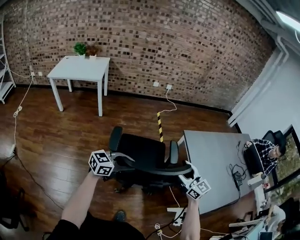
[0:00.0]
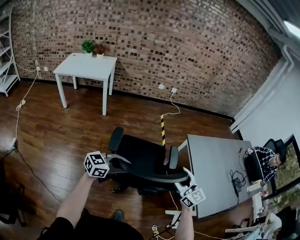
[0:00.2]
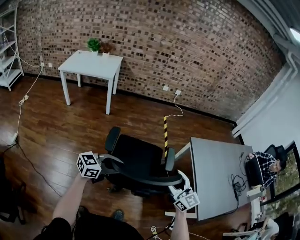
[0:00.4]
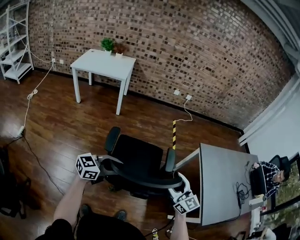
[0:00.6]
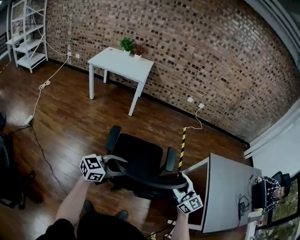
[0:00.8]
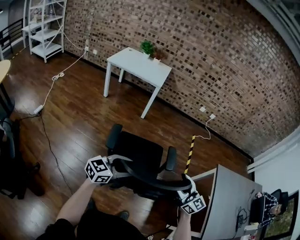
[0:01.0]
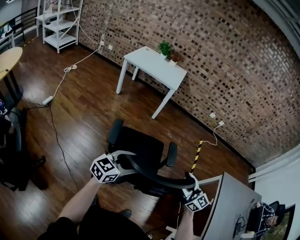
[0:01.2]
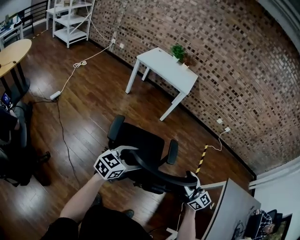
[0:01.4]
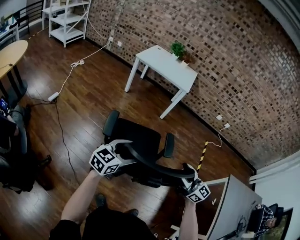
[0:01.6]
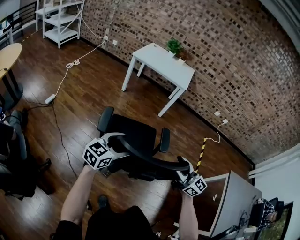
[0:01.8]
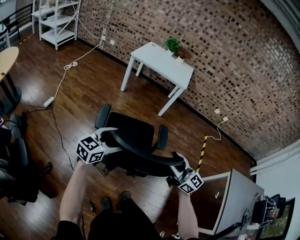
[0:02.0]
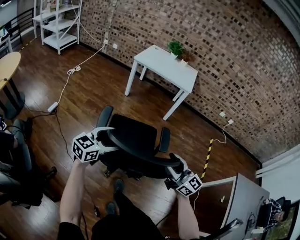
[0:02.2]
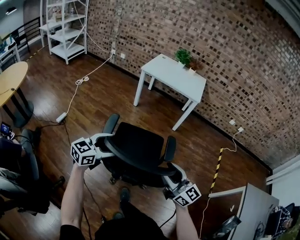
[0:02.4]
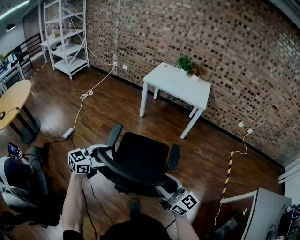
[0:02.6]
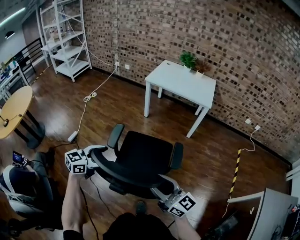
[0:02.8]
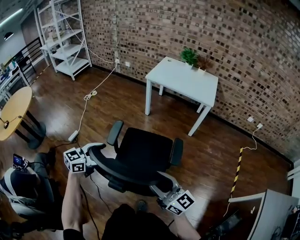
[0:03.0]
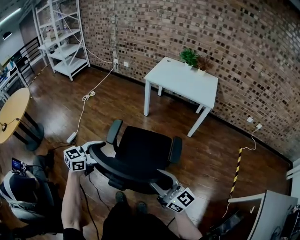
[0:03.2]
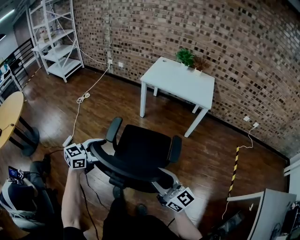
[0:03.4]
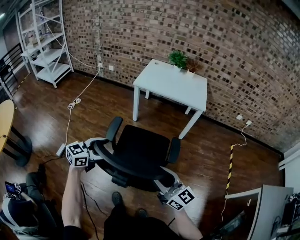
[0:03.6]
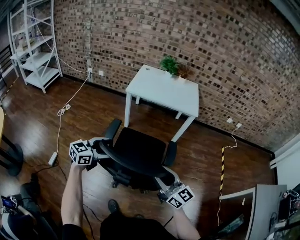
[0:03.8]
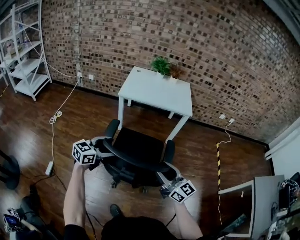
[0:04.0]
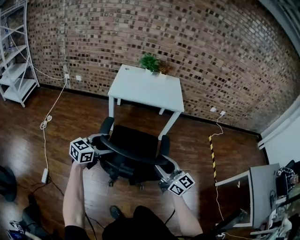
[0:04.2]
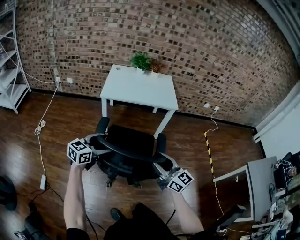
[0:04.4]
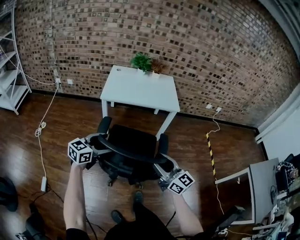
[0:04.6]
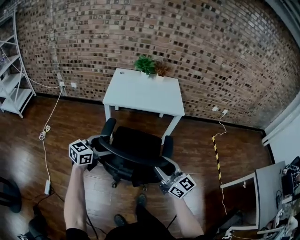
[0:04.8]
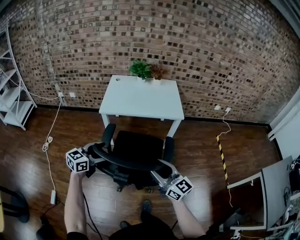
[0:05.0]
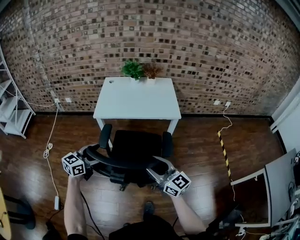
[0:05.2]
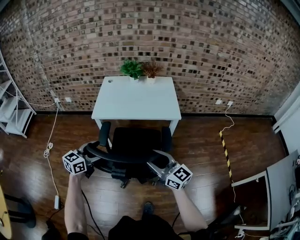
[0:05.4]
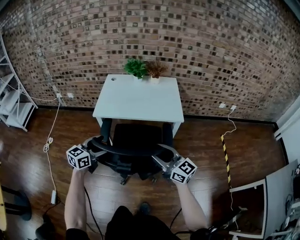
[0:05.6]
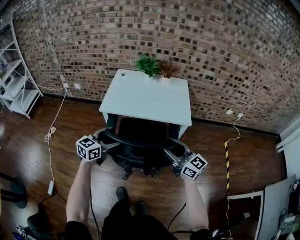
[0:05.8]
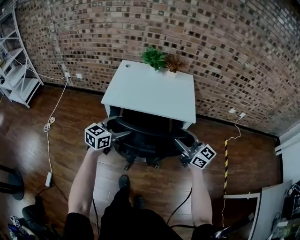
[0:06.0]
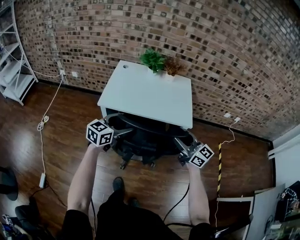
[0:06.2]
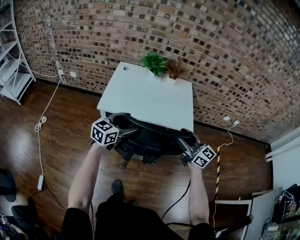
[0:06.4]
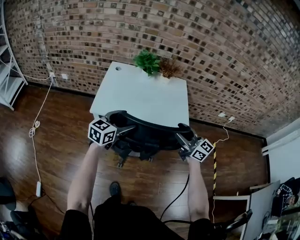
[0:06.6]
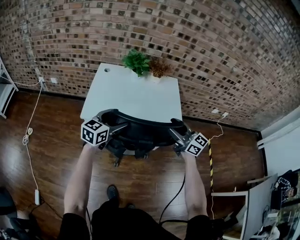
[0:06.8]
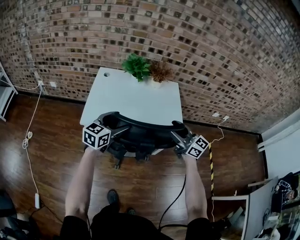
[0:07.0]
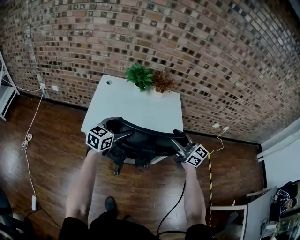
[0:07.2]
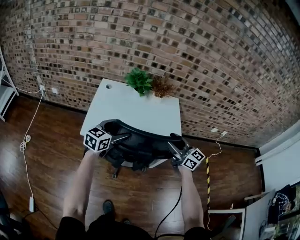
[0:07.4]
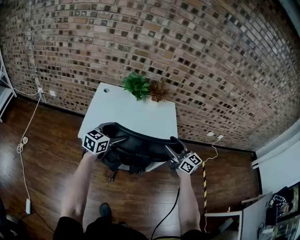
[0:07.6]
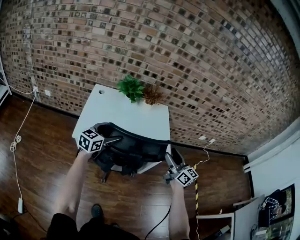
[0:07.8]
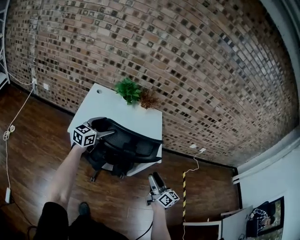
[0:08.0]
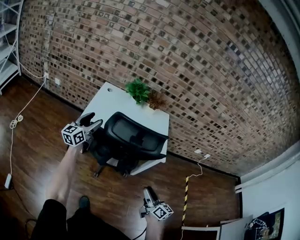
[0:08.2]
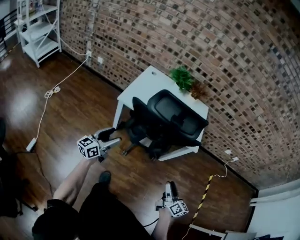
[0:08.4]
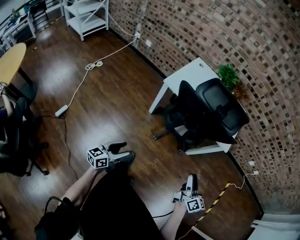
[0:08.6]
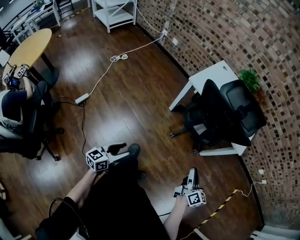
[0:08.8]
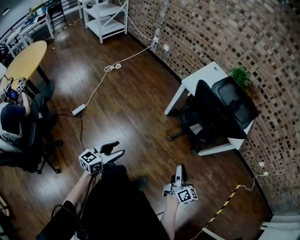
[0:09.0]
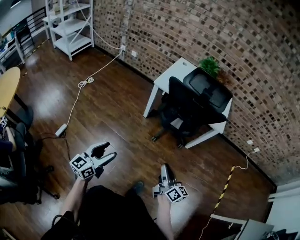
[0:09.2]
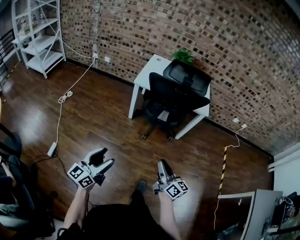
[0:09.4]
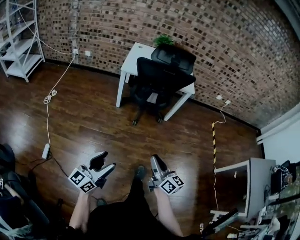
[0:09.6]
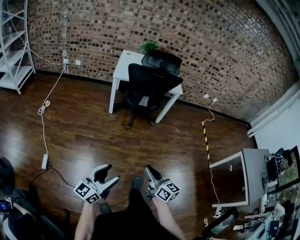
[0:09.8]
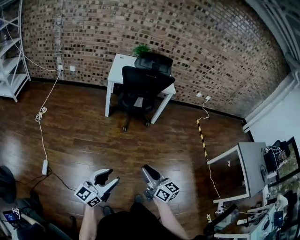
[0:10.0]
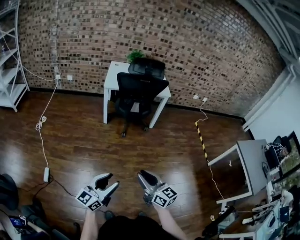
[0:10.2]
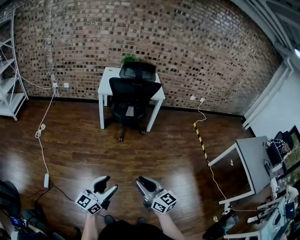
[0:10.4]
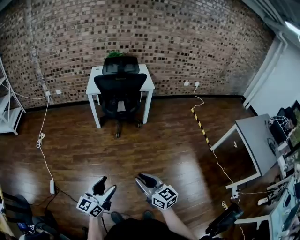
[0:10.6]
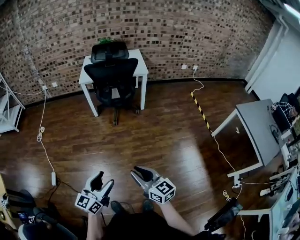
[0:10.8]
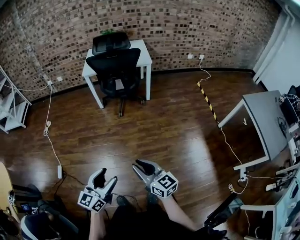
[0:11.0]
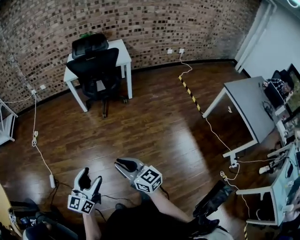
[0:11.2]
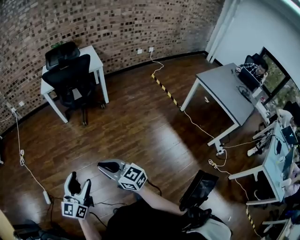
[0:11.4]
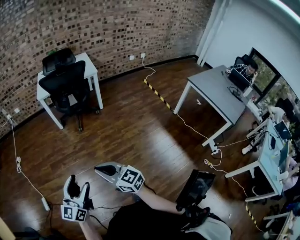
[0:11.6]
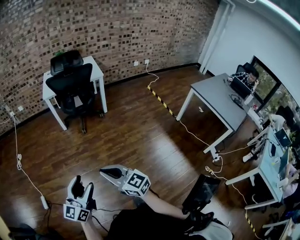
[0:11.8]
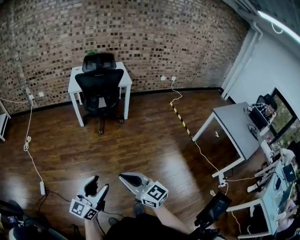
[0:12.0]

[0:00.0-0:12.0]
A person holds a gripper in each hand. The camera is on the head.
0:00.0 to 0:01.6: The two grippers travel together, about 60 cm. The left gripper turns by approximately 50 degrees. The right gripper changes its angle by approximately 40 degrees.
0:01.6 to 0:03.0: Both grippers travel together forward and to the left, some 30 cm.
0:03.0 to 0:04.4: Both grippers travel together forward, approximately 30 cm. The right gripper changes its angle by about 20 degrees.
0:04.4 to 0:06.0: The right gripper heads forward, covering about 35 cm. The left gripper is displaced forward and to the right by about 30 cm.
0:06.0 to 0:07.6: Both grippers move forward, roughly 25 cm.
0:07.6 to 0:09.0: The two grippers travel together, backward and to the left, about 60 cm. The right gripper turns by some 40 degrees, and closes. The left gripper swivels roughly 30 degrees.
0:09.0 to 0:10.4: Both grippers move backward and upward, some 50 cm. The right gripper swivels some 30 degrees. Meanwhile the left gripper turns by some 40 degrees.
0:10.4 to 0:12.0: The left gripper goes some 15 cm backward, to the right and upward. Meanwhile the right gripper moves backward, about 10 cm, and reaches some 15 cm to the right, then returns.

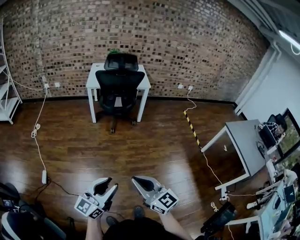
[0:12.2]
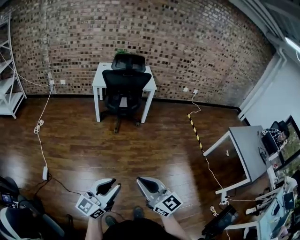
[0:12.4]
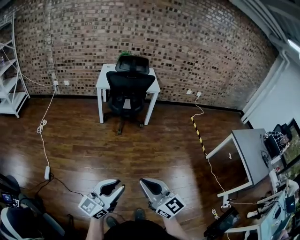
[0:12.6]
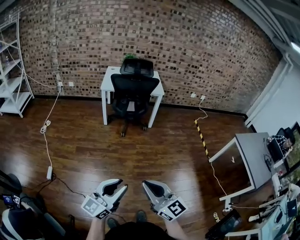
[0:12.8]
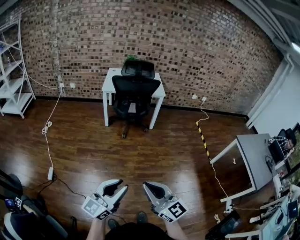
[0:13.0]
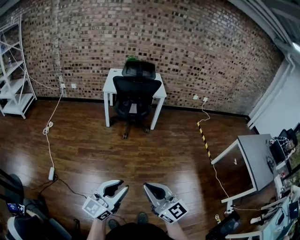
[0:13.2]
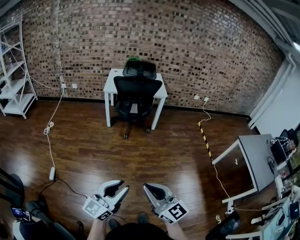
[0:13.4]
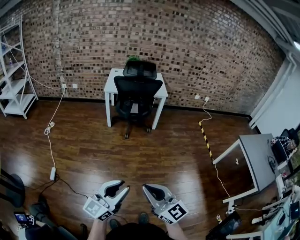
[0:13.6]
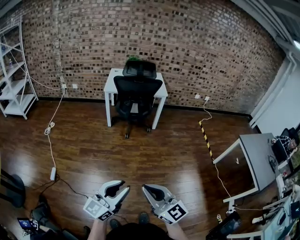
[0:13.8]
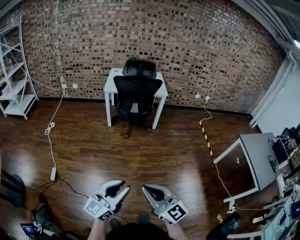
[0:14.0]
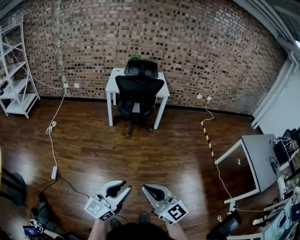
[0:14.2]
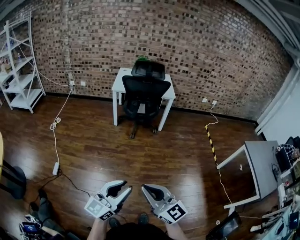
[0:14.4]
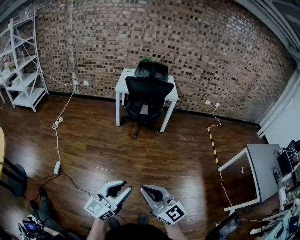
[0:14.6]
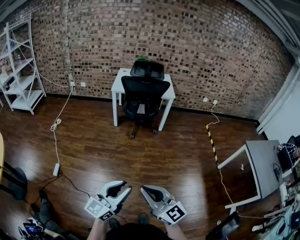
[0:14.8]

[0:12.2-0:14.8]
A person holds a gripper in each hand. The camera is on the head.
0:12.2 to 0:13.4: The left gripper shifts by about 5 cm; the right gripper heads upward, covering roughly 5 cm.
0:13.4 to 0:14.8: The grippers move only a little.

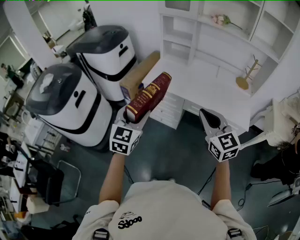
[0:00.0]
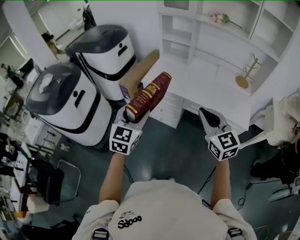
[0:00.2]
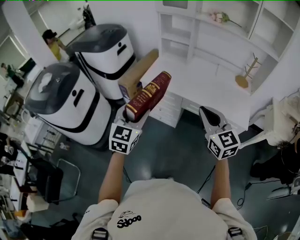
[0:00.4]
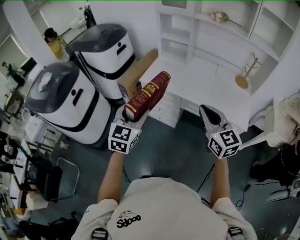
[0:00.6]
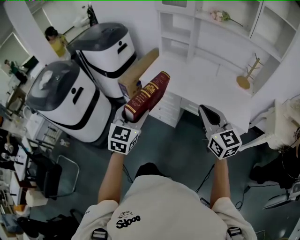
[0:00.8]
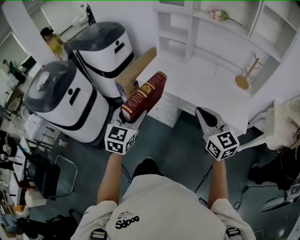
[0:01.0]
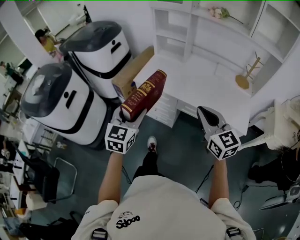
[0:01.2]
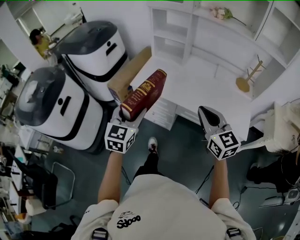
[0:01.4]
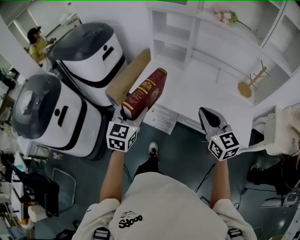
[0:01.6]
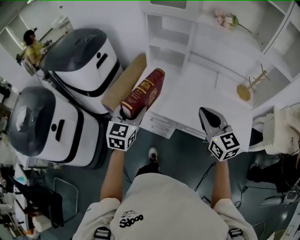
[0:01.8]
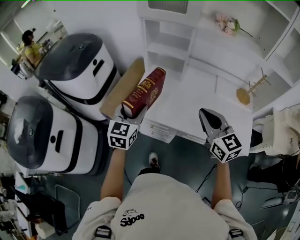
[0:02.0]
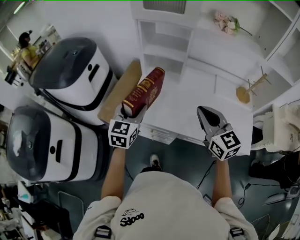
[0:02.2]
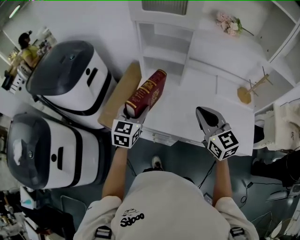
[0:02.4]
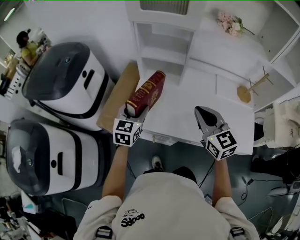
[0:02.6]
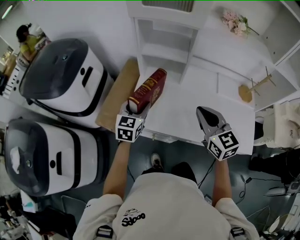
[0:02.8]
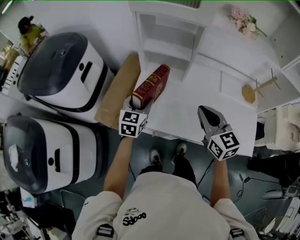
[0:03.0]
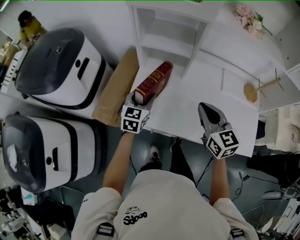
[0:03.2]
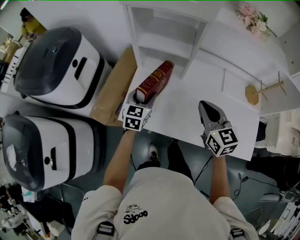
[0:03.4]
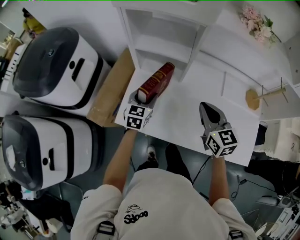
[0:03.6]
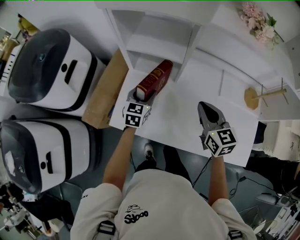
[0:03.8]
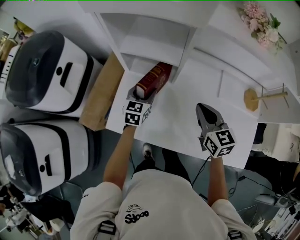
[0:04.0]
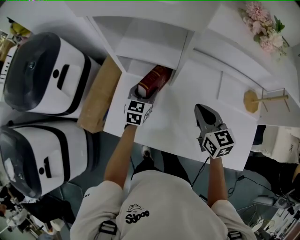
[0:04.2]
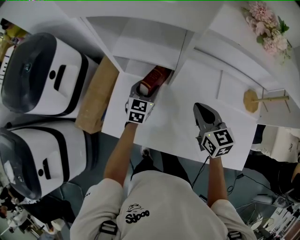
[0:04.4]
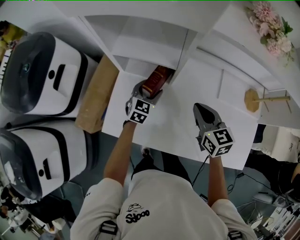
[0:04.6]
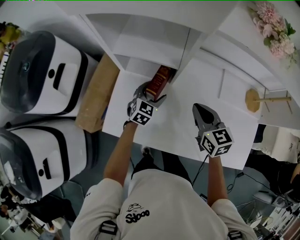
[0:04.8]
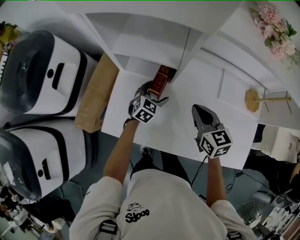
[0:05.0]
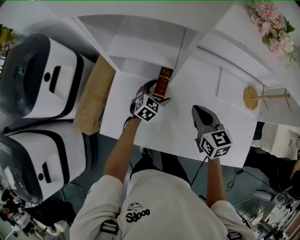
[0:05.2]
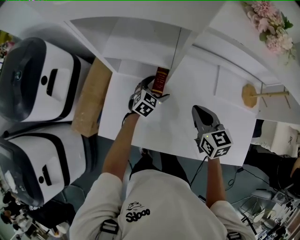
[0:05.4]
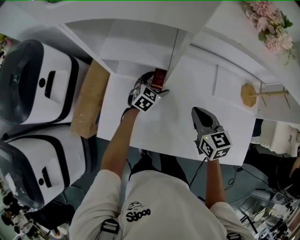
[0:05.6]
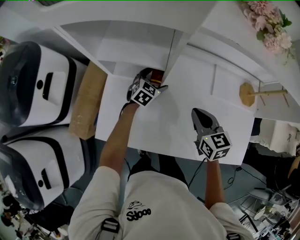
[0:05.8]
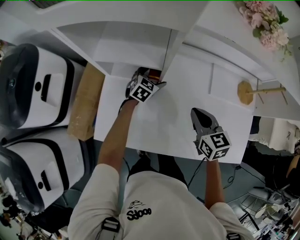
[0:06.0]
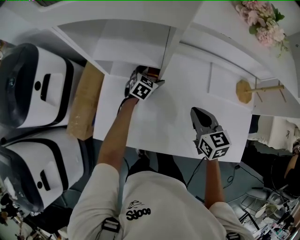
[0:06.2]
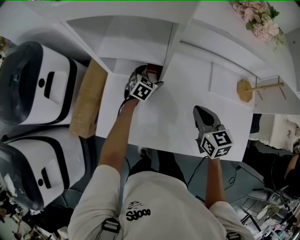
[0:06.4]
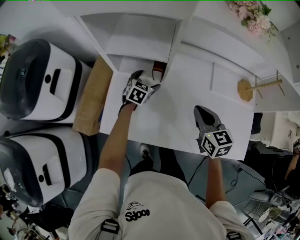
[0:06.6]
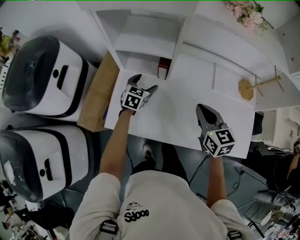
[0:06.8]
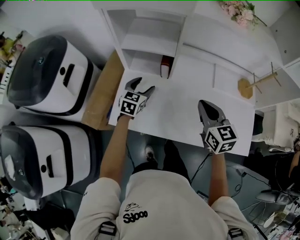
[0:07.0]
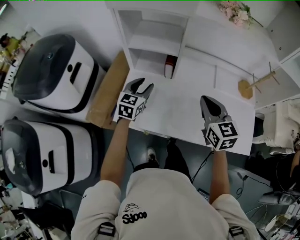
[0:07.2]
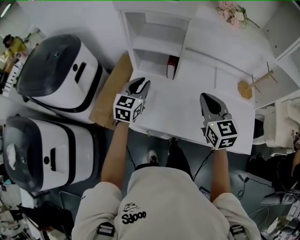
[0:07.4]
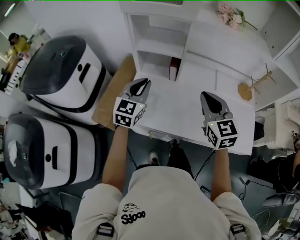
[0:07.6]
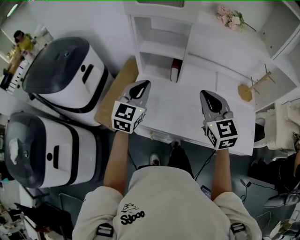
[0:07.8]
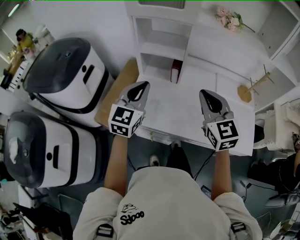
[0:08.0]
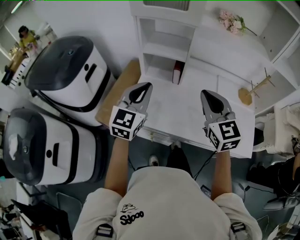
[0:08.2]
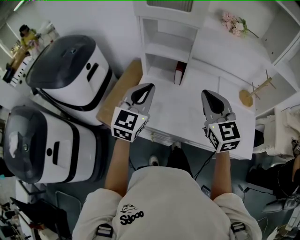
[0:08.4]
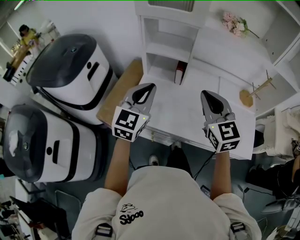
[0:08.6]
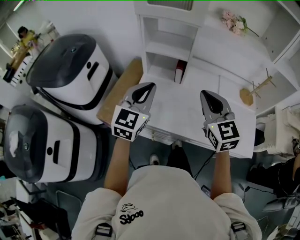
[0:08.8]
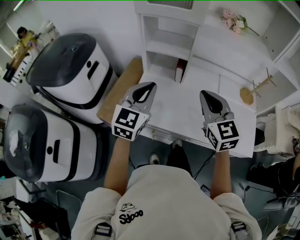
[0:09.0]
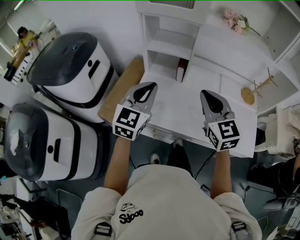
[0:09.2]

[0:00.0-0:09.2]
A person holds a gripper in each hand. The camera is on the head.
0:00.0 to 0:01.6: The two grippers go roughly 20 cm forward.
0:01.6 to 0:03.0: The two grippers go about 25 cm forward.
0:03.0 to 0:04.6: The left gripper heads forward, to the right and downward, covering about 25 cm. The right gripper travels forward, downward and to the right by about 20 cm.
0:04.6 to 0:06.2: The left gripper travels forward and to the right by some 10 cm, and opens up, while the right gripper shifts by about 5 cm.
0:06.2 to 0:07.6: The right gripper goes about 20 cm upward, backward and to the left, and turns by about 30 degrees. The left gripper shifts approximately 40 cm backward, upward and to the left, turns by about 30 degrees, and closes.
0:07.6 to 0:09.2: The left gripper moves backward and upward, about 10 cm; the right gripper ends up approximately 5 cm from where it was.
